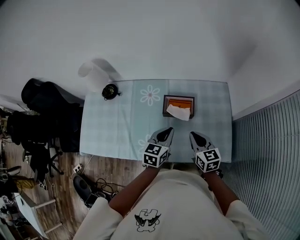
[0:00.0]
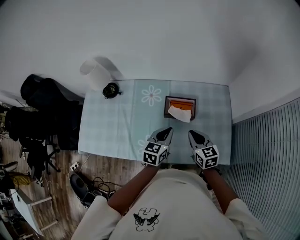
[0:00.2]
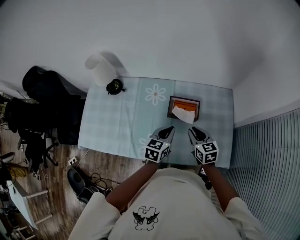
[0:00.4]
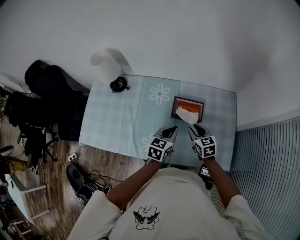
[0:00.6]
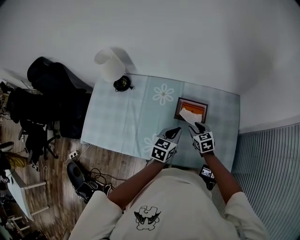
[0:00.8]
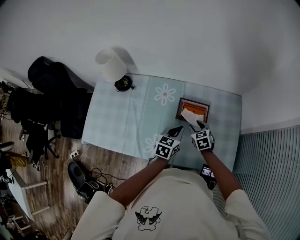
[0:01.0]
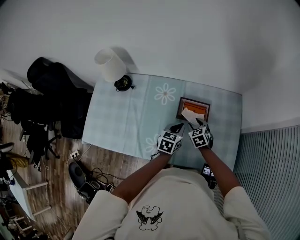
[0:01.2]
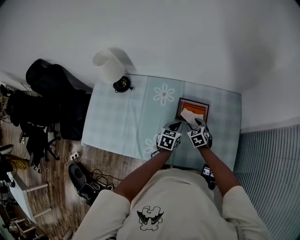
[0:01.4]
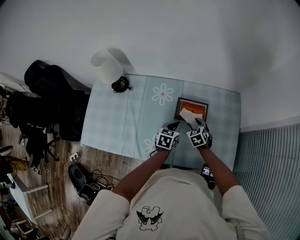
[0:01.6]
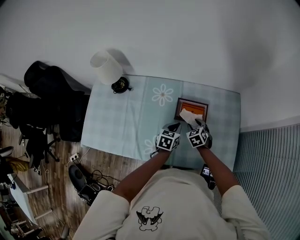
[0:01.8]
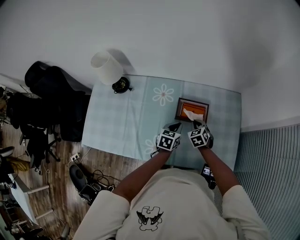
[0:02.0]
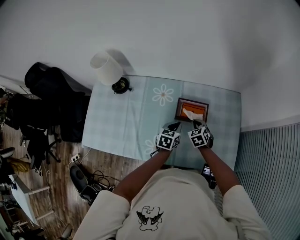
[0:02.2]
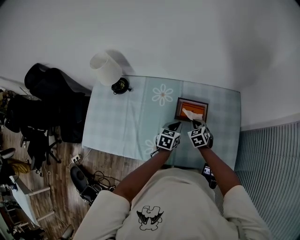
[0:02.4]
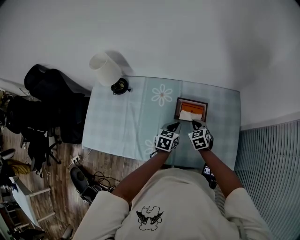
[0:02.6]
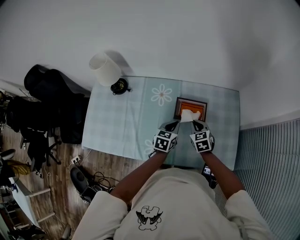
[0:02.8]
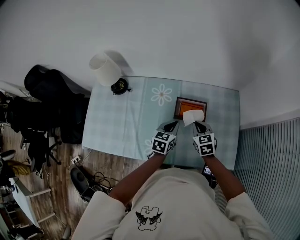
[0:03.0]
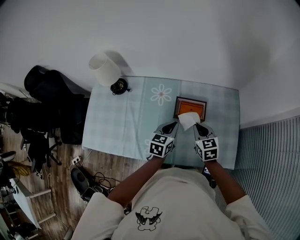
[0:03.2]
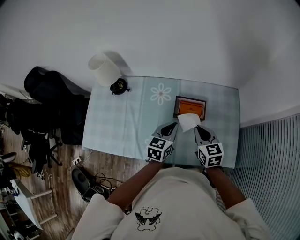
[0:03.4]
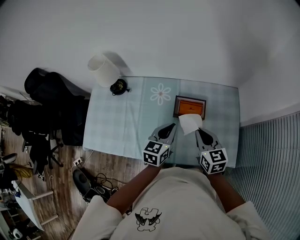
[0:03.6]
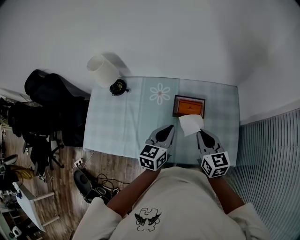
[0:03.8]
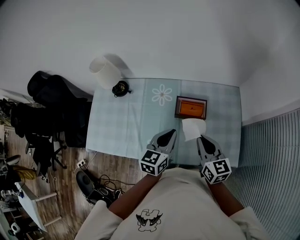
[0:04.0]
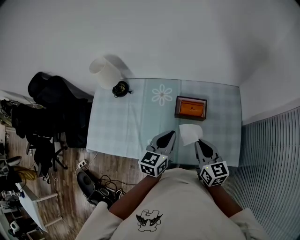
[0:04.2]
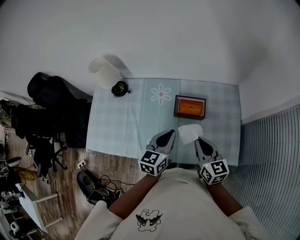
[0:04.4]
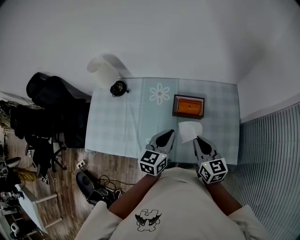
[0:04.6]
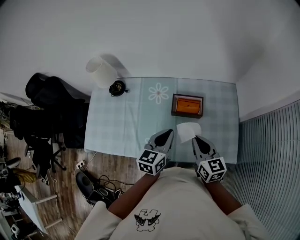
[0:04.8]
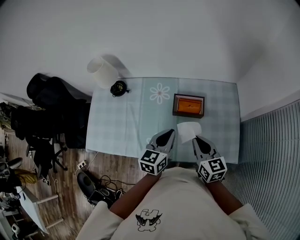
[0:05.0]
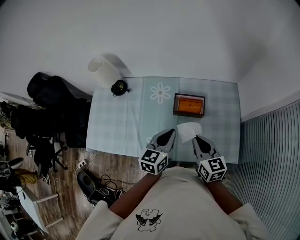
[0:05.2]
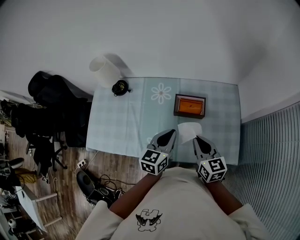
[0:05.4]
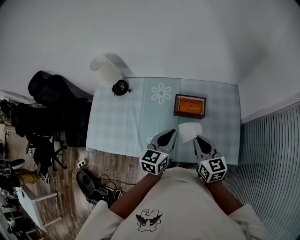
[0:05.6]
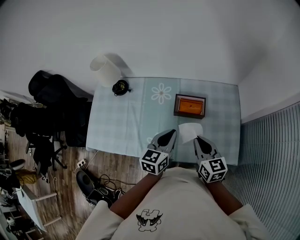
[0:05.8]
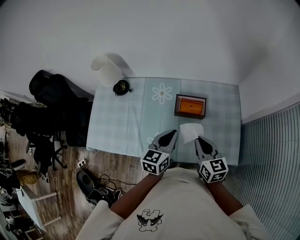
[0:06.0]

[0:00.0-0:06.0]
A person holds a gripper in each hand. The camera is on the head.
0:00.0 to 0:01.6: The two grippers go about 15 cm downward and forward. The right gripper turns by roughly 40 degrees, and opens its fingers.
0:01.6 to 0:03.0: The left gripper heads upward, covering some 5 cm; the right gripper moves upward, roughly 10 cm, and closes its fingers.
0:03.0 to 0:04.4: Both grippers travel together upward and backward, about 15 cm. The right gripper changes its angle by about 30 degrees.
0:04.4 to 0:06.0: The grippers stay close to where they were, moving slightly.

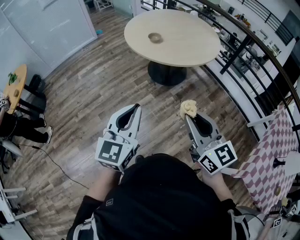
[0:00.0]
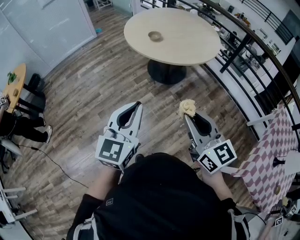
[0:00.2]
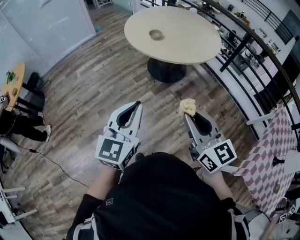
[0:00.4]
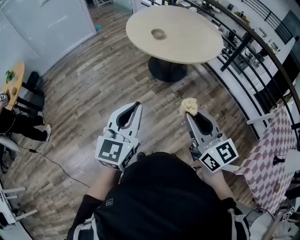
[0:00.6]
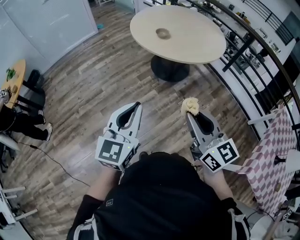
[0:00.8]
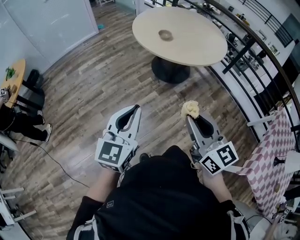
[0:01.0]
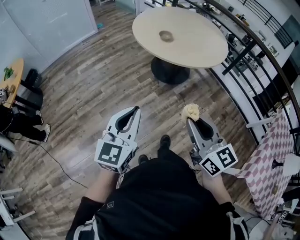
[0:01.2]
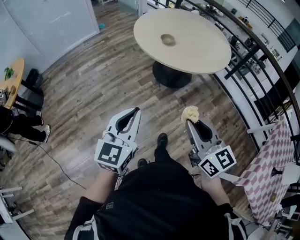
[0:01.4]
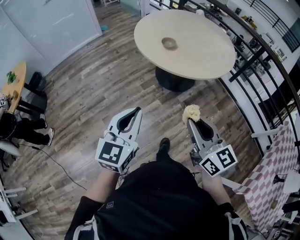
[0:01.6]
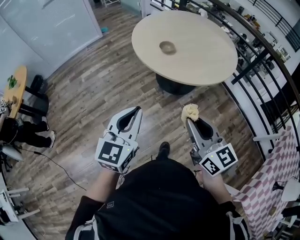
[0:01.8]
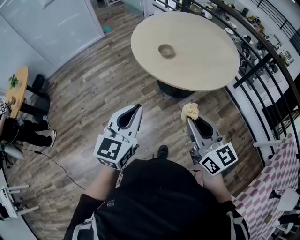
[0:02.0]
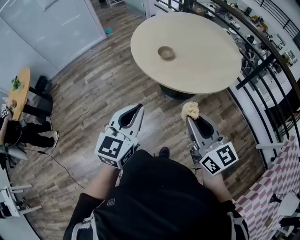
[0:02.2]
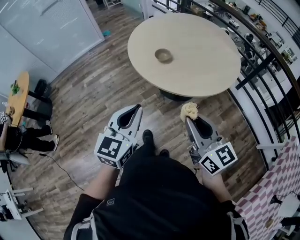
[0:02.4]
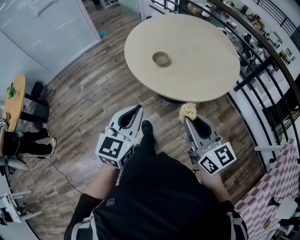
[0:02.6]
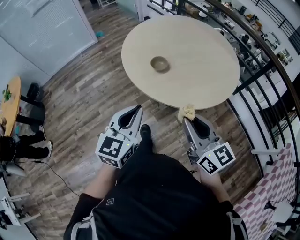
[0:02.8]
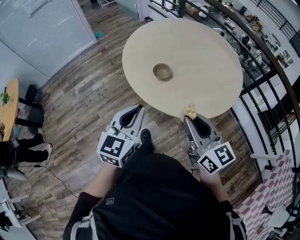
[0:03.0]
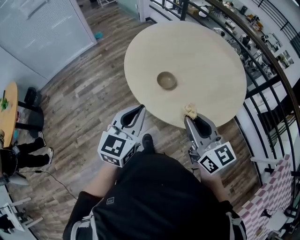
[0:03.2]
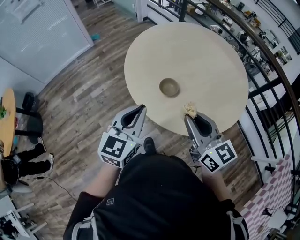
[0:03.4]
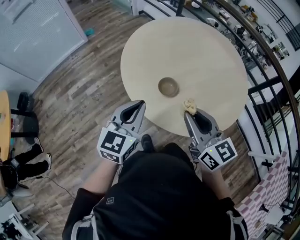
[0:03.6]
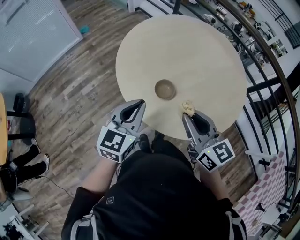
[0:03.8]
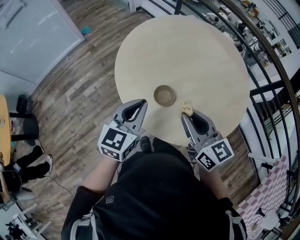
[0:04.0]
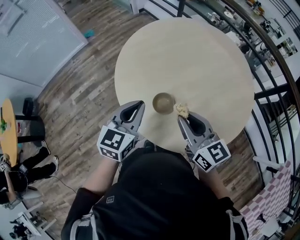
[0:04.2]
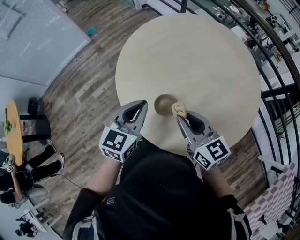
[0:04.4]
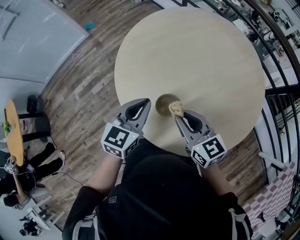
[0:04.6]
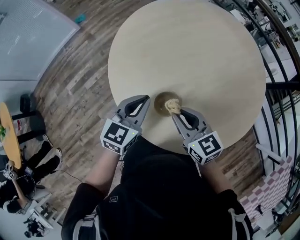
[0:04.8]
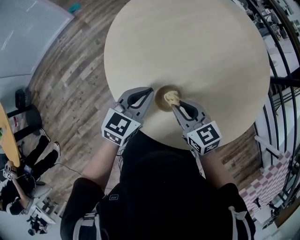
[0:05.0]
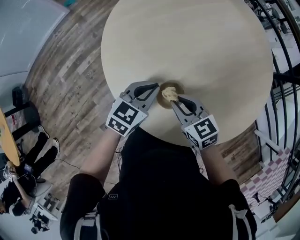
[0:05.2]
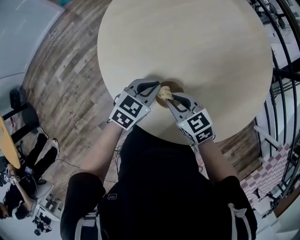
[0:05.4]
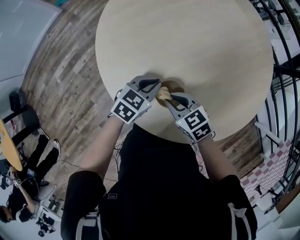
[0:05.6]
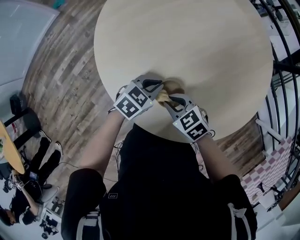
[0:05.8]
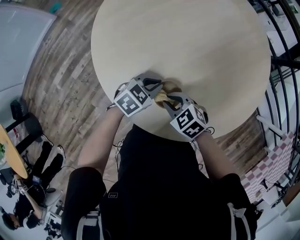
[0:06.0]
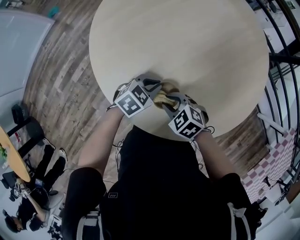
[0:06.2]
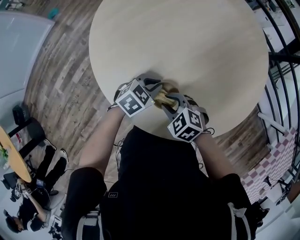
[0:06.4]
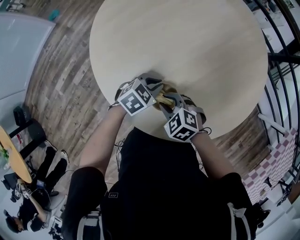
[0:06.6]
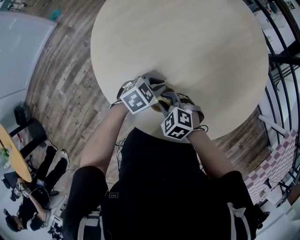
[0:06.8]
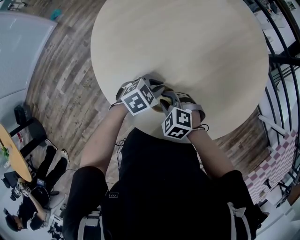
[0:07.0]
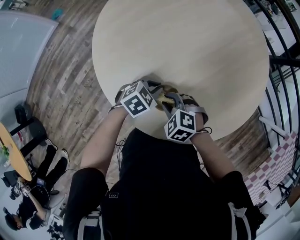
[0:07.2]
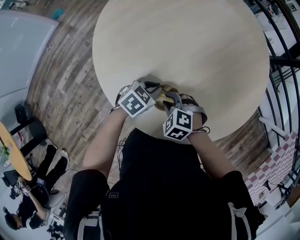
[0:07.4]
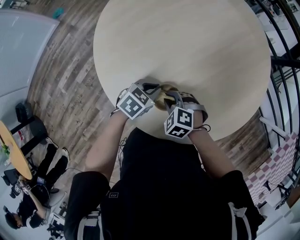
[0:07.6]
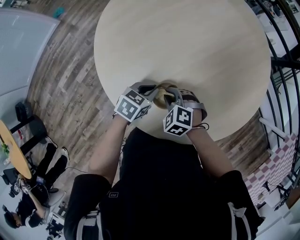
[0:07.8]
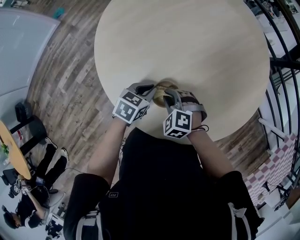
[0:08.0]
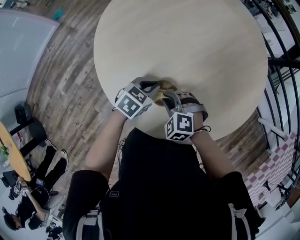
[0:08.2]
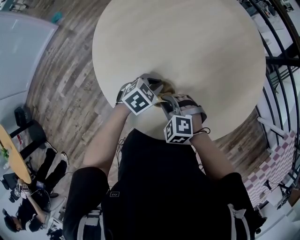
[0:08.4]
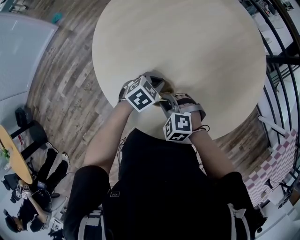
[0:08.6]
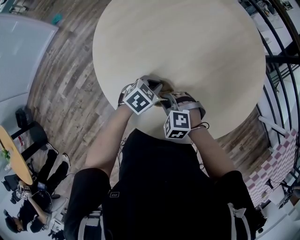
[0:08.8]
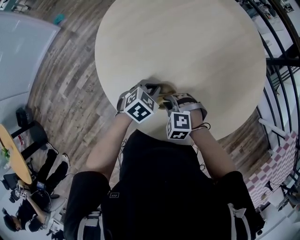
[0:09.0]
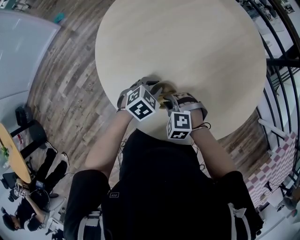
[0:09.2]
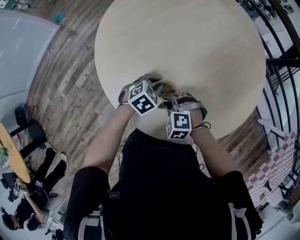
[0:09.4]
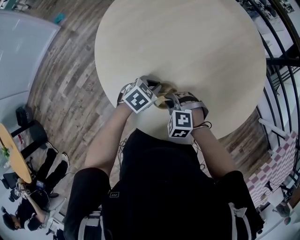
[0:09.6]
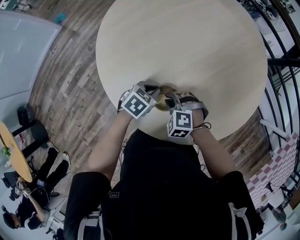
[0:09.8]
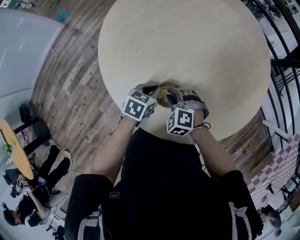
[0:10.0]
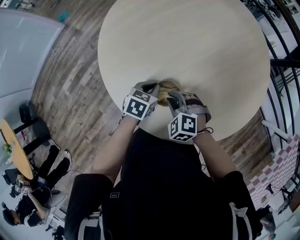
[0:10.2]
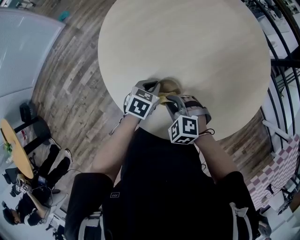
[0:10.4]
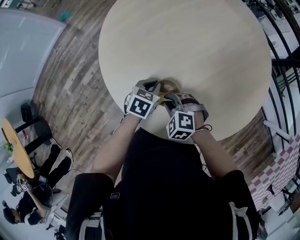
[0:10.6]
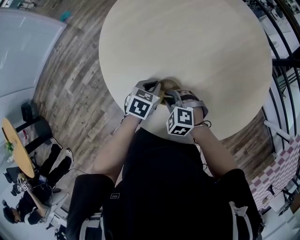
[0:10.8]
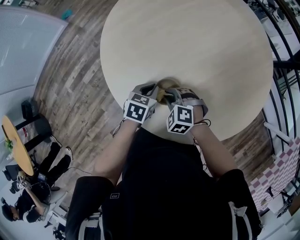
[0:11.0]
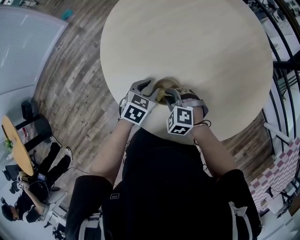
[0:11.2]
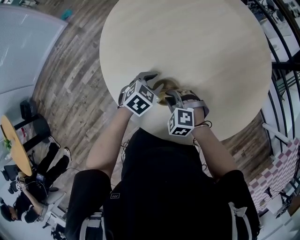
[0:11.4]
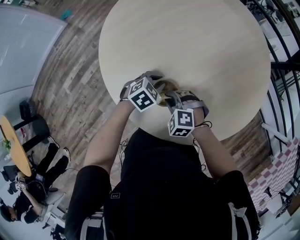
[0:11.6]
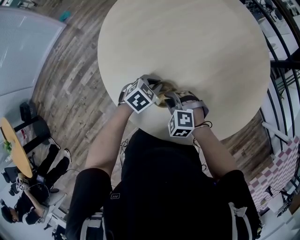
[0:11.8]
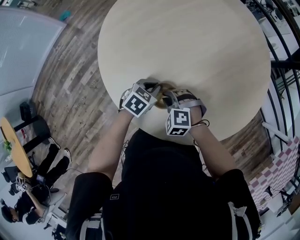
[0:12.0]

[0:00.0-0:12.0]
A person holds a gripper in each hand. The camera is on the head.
0:00.0 to 0:01.6: The two grippers go about 15 cm forward and to the left.
0:01.6 to 0:03.0: The grippers both shift forward by approximately 30 cm.
0:03.0 to 0:04.4: Both grippers move forward, some 30 cm.
0:04.4 to 0:06.0: Both grippers move downward, approximately 25 cm. The left gripper changes its angle by some 50 degrees; the right gripper points its fingers about 40 degrees further downward.
0:06.0 to 0:07.6: The right gripper rotates some 20 degrees.
0:07.6 to 0:09.0: The grippers make only small movements.
0:09.0 to 0:10.4: The left gripper changes its angle by approximately 20 degrees.
0:10.4 to 0:12.0: The left gripper opens, then closes once more.

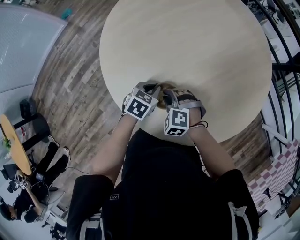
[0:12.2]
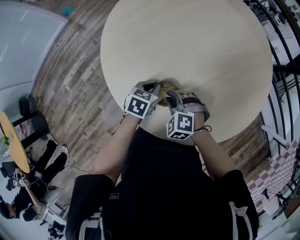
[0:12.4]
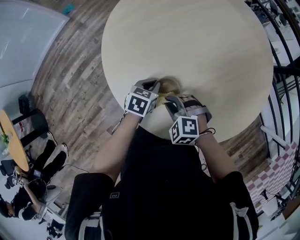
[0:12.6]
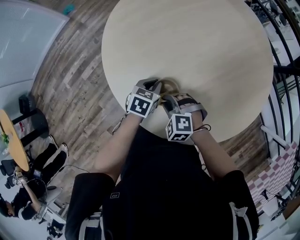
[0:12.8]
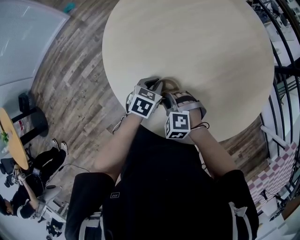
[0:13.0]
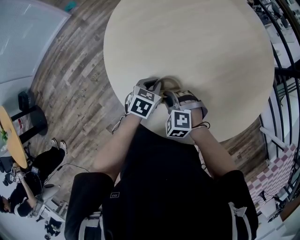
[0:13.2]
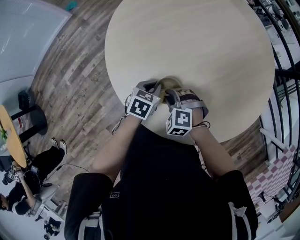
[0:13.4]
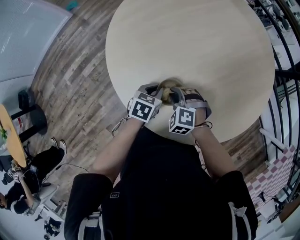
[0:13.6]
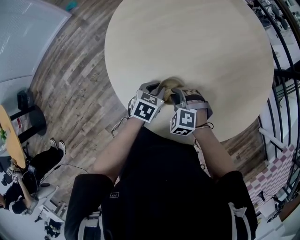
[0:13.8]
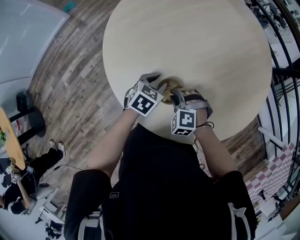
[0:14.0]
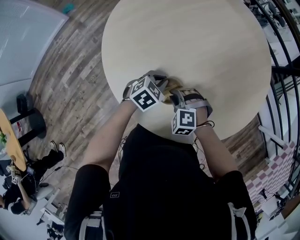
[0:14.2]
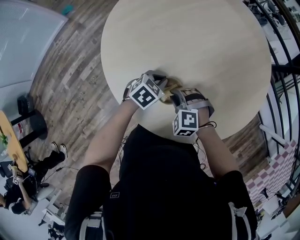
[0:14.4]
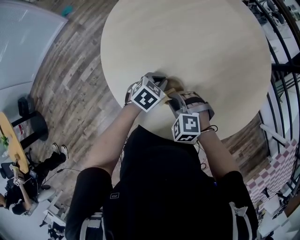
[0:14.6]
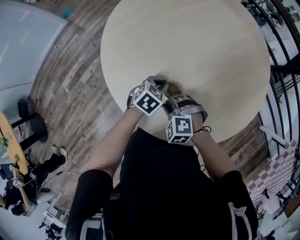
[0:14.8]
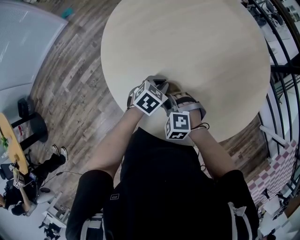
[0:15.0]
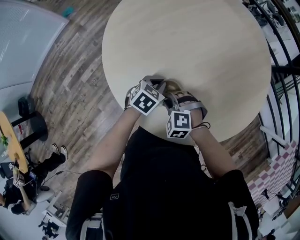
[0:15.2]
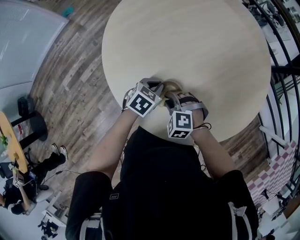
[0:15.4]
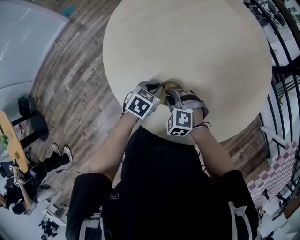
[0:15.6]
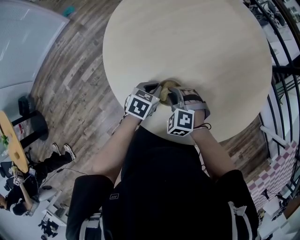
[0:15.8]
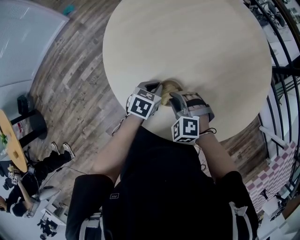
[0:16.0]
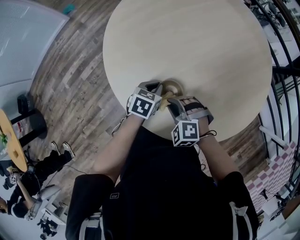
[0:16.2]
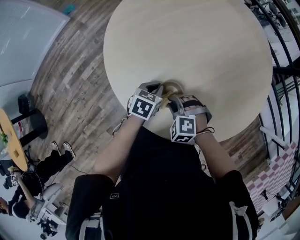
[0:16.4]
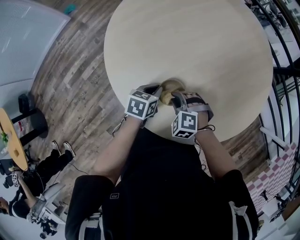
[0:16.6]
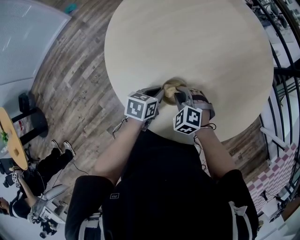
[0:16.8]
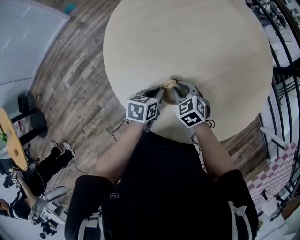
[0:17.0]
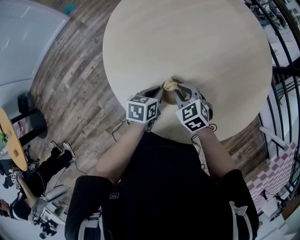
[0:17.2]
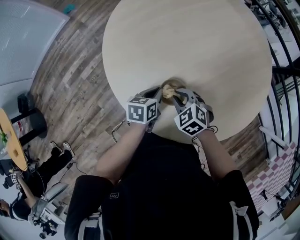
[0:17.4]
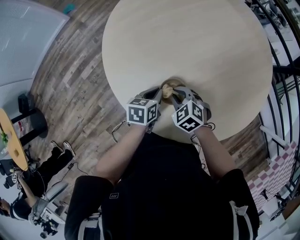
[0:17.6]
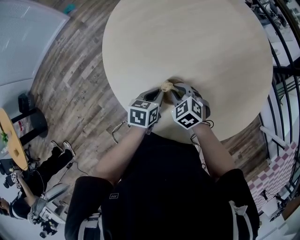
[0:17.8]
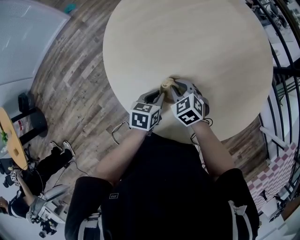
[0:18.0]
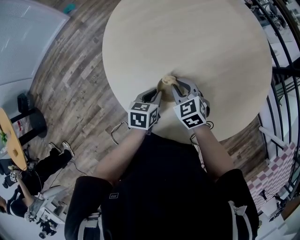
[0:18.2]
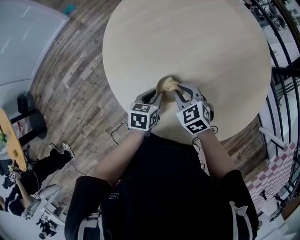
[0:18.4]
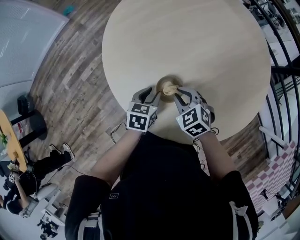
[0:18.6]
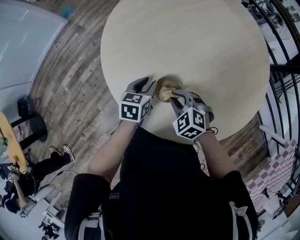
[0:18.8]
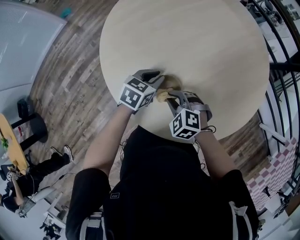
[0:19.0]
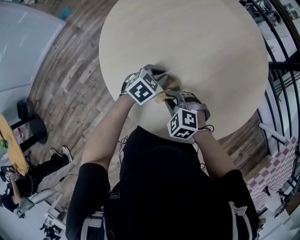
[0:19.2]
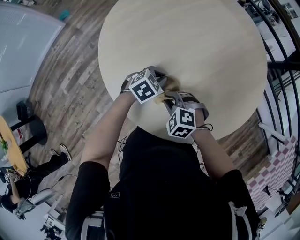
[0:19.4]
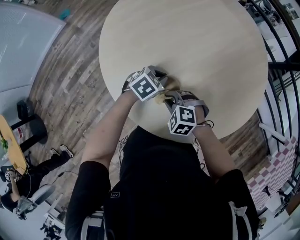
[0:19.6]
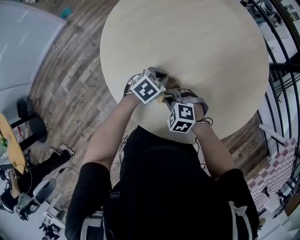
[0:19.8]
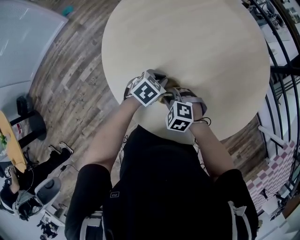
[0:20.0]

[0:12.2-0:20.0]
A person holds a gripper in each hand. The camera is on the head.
0:12.2 to 0:13.8: The grippers stay close to where they were, moving slightly.
0:15.4 to 0:16.8: The left gripper changes its angle by roughly 30 degrees.
0:16.8 to 0:18.4: The right gripper travels upward by roughly 5 cm, and turns by roughly 30 degrees.
0:18.4 to 0:20.0: The right gripper shifts by some 10 cm, and changes its angle by about 30 degrees, while the left gripper shifts by approximately 5 cm, and rotates approximately 40 degrees.
